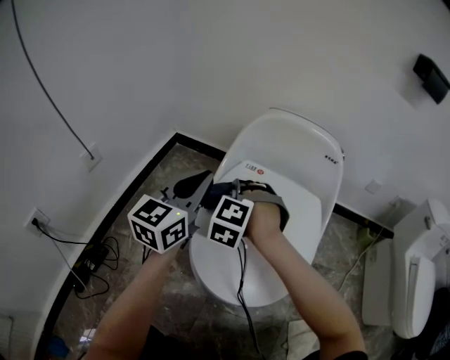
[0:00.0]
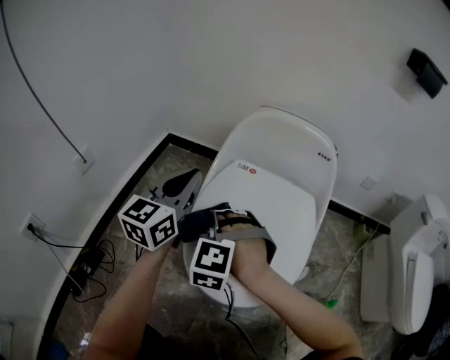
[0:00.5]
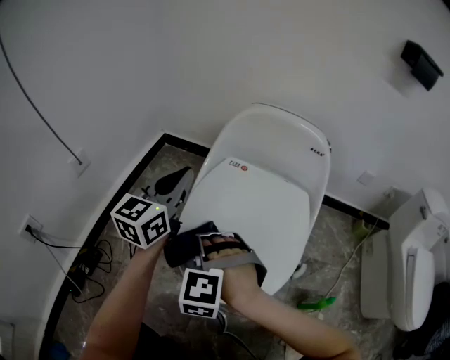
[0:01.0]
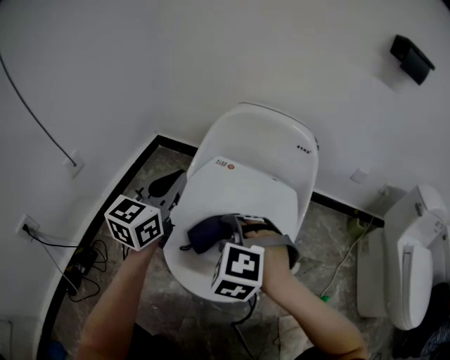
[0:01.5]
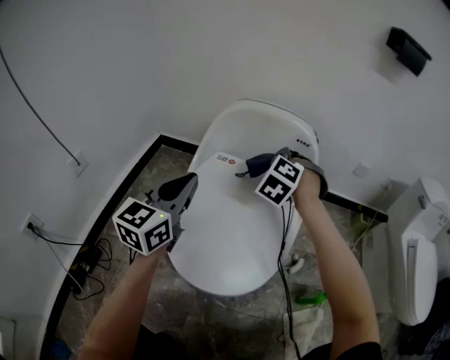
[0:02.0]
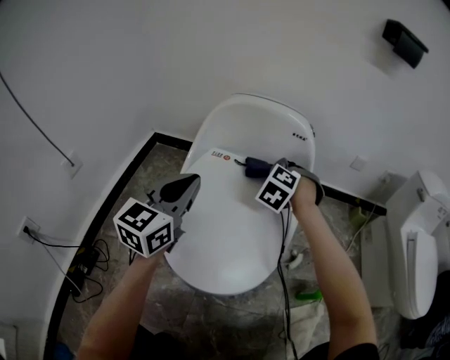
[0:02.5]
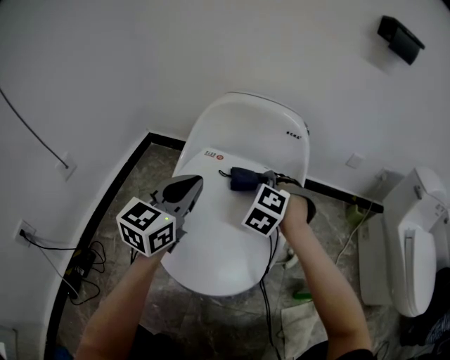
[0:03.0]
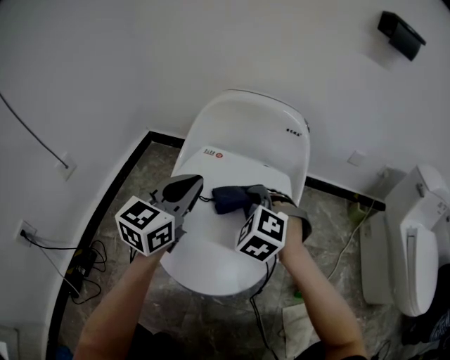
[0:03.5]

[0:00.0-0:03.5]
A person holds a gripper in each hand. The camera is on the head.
0:00.0 to 0:02.0: The left gripper moves approximately 5 cm.
0:02.0 to 0:03.5: The left gripper moves some 5 cm.

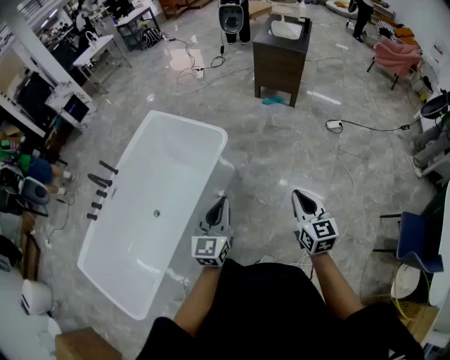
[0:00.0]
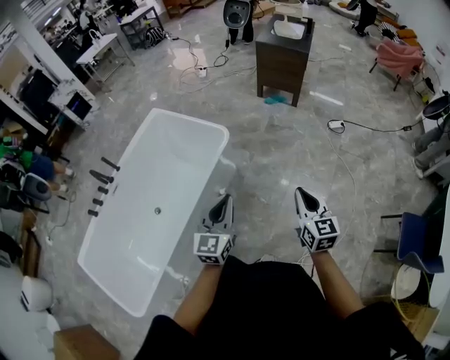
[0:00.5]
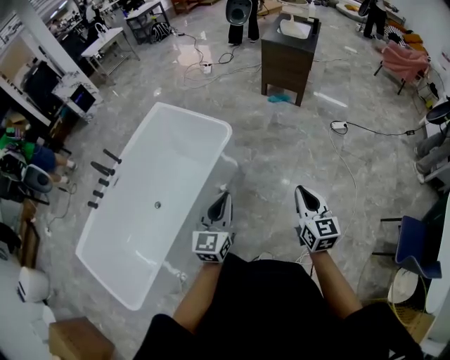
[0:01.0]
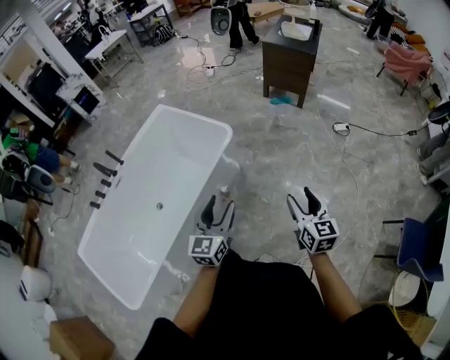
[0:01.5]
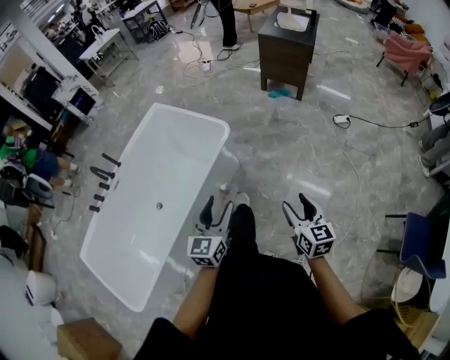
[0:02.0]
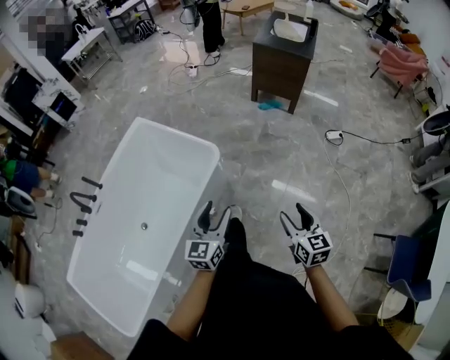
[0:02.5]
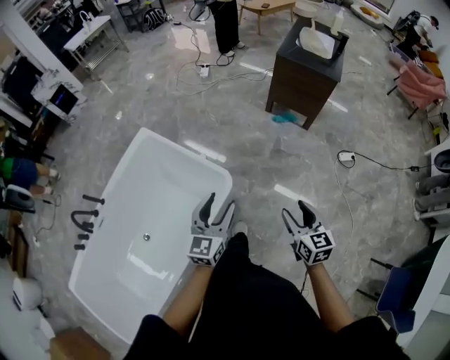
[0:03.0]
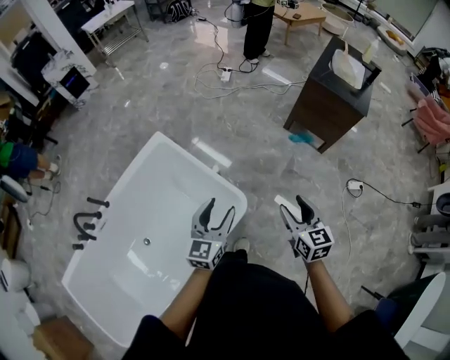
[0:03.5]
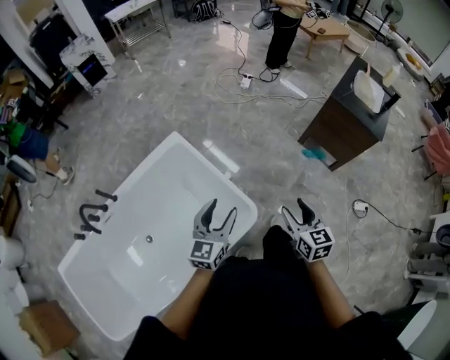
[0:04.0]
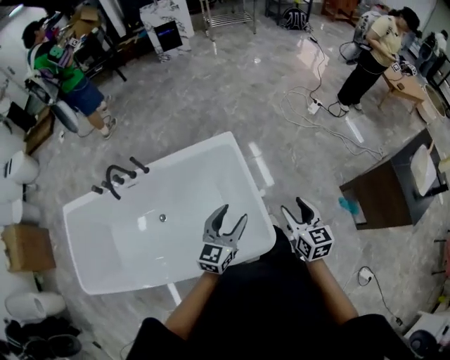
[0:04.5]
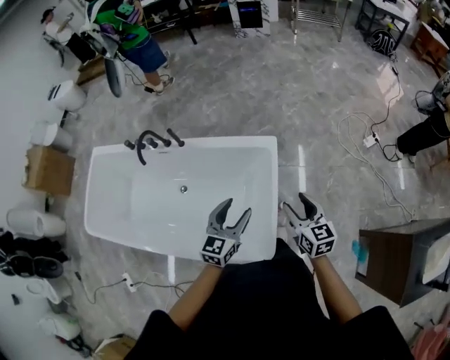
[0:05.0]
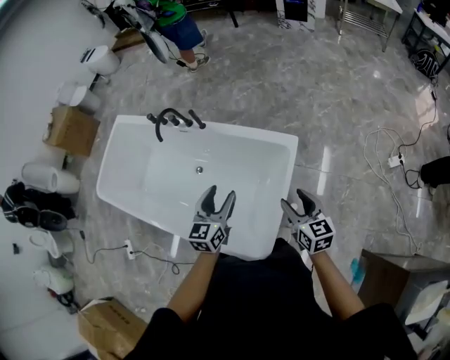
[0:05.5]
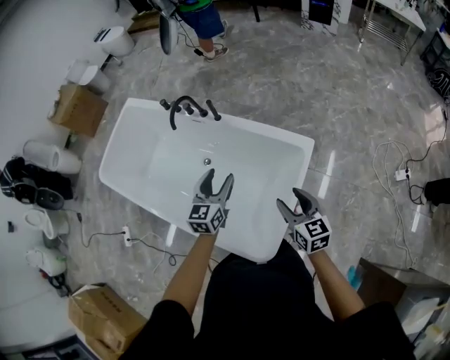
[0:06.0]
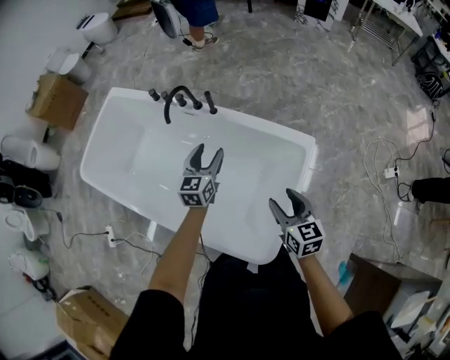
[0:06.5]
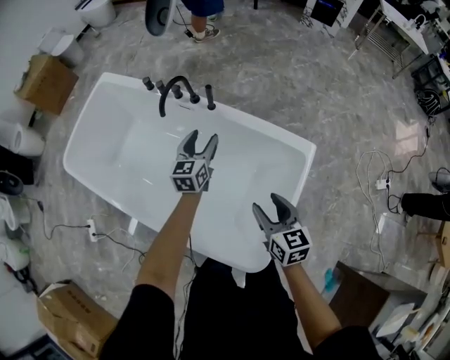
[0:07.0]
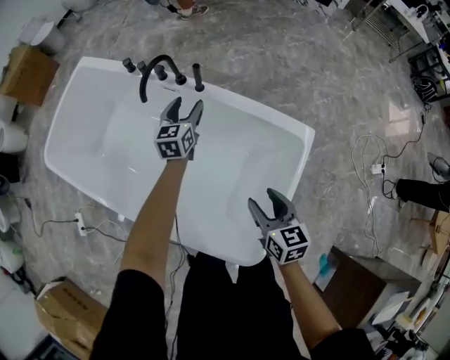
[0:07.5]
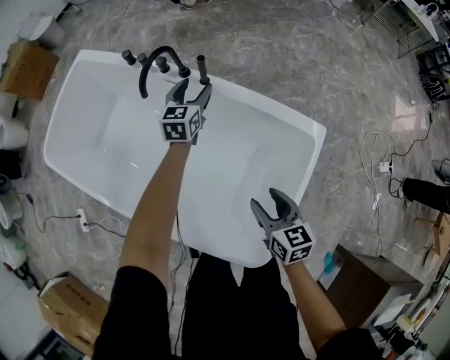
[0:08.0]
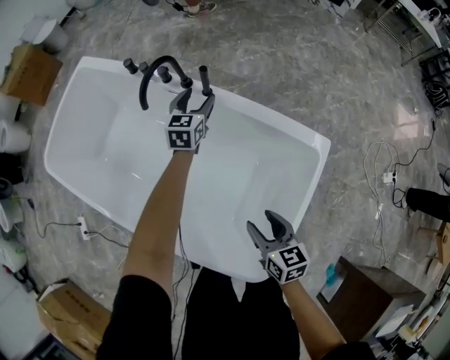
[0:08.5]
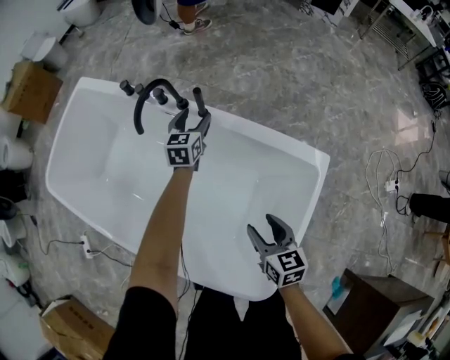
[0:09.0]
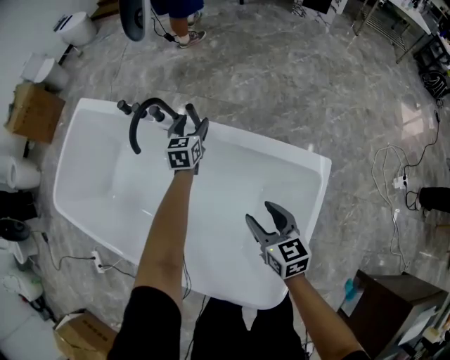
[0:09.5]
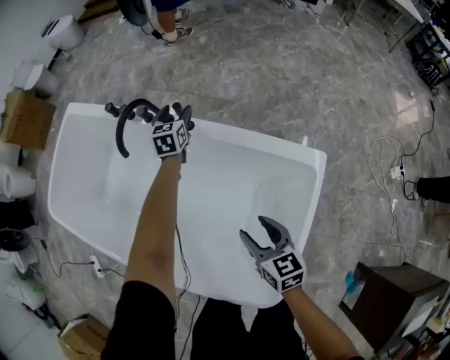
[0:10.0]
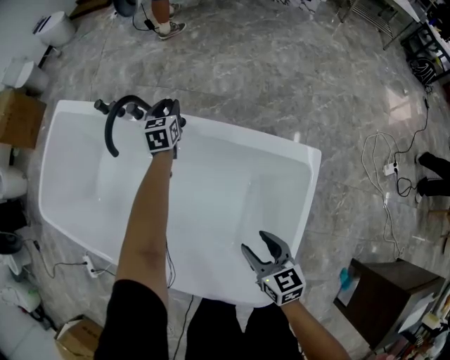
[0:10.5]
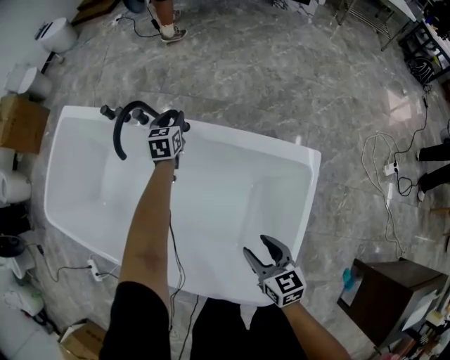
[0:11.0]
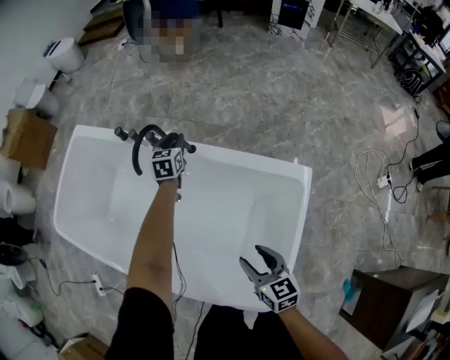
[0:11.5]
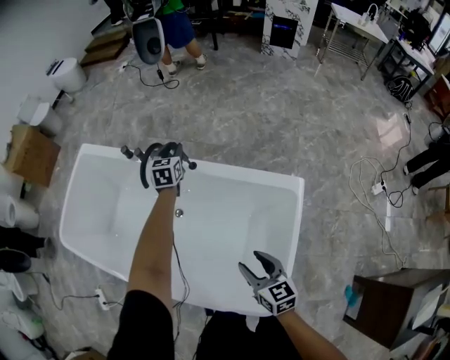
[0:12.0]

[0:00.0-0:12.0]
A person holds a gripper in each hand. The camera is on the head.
0:00.0 to 0:02.0: The right gripper travels downward by approximately 5 cm, and opens up. Meanwhile the left gripper opens up.
0:02.0 to 0:04.0: The pair of grippers is taken forward, roughly 60 cm. The right gripper turns by roughly 20 degrees.
0:04.0 to 0:06.0: The right gripper shifts by about 40 cm, and rotates some 80 degrees, while the left gripper moves some 30 cm, and rotates approximately 70 degrees.
0:06.0 to 0:08.0: The right gripper travels downward, to the left and forward by roughly 20 cm. The left gripper moves forward and downward, approximately 35 cm.
0:08.0 to 0:10.0: The right gripper moves forward, some 5 cm; the left gripper heads forward and downward, covering some 15 cm.
0:10.0 to 0:12.0: The left gripper shifts about 15 cm upward, and closes its fingers. Meanwhile the right gripper shifts approximately 15 cm upward and backward.

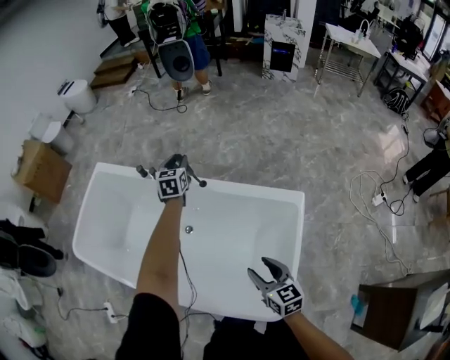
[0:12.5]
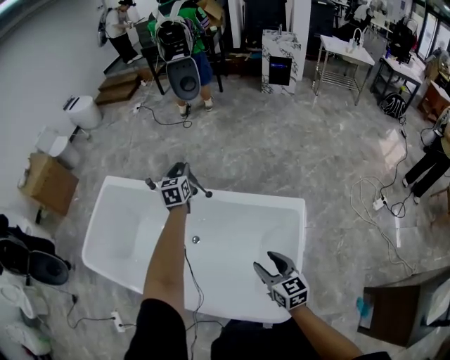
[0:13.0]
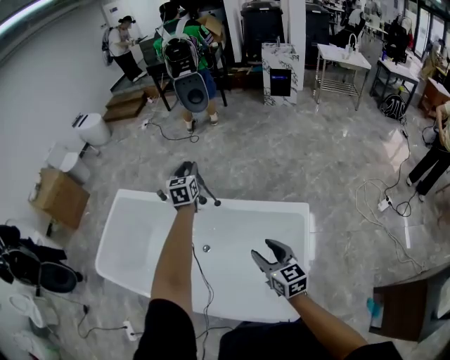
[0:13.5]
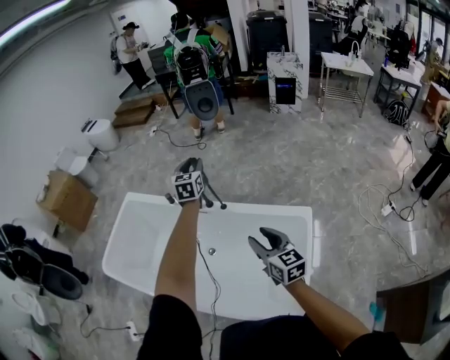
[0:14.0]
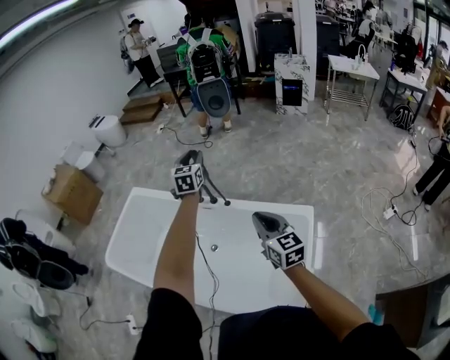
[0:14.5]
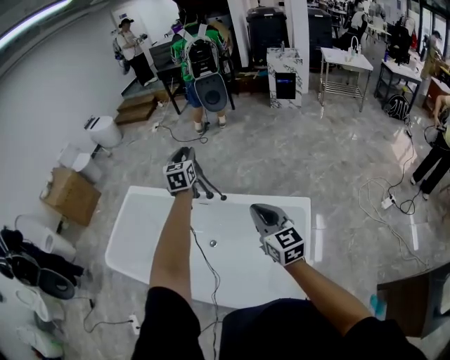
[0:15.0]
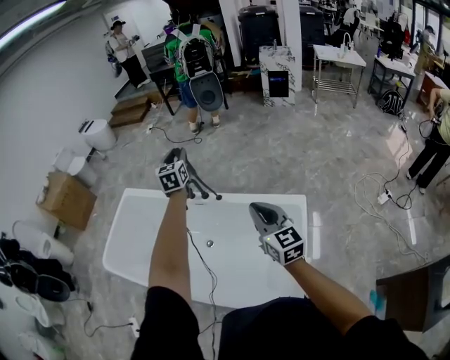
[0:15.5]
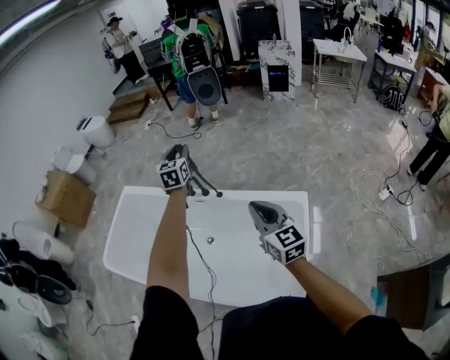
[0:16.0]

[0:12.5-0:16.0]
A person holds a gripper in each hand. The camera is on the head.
0:12.5 to 0:14.5: The two grippers go some 25 cm upward. The right gripper closes its fingers.
0:14.5 to 0:16.0: The grippers move only a little.

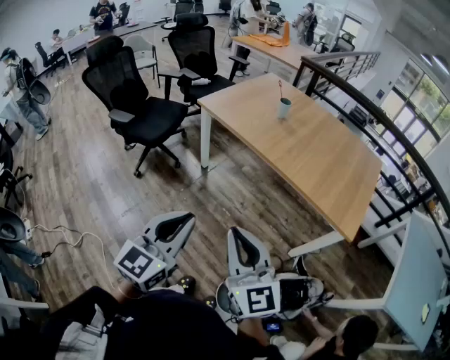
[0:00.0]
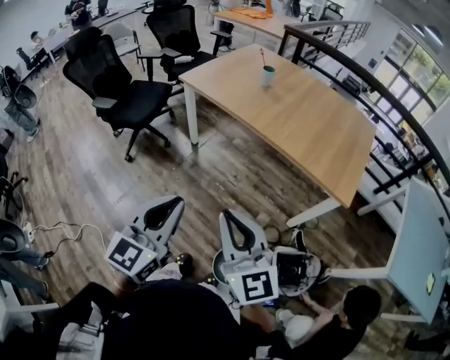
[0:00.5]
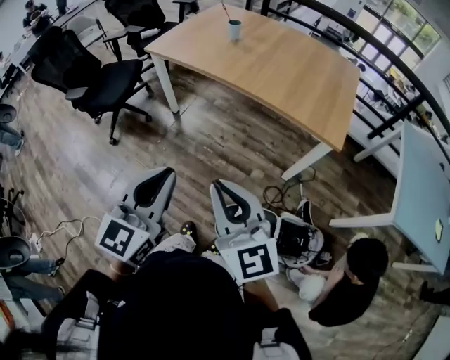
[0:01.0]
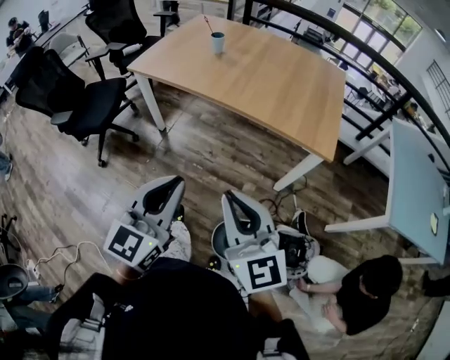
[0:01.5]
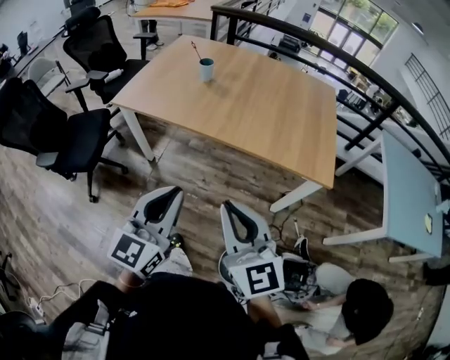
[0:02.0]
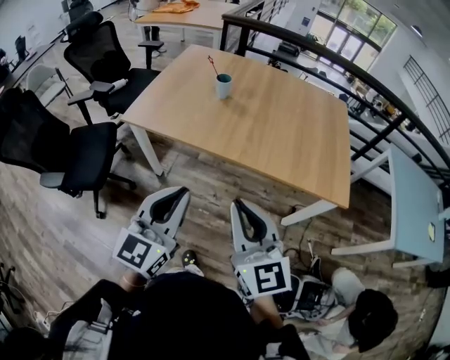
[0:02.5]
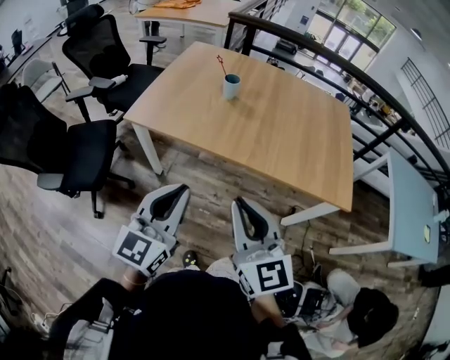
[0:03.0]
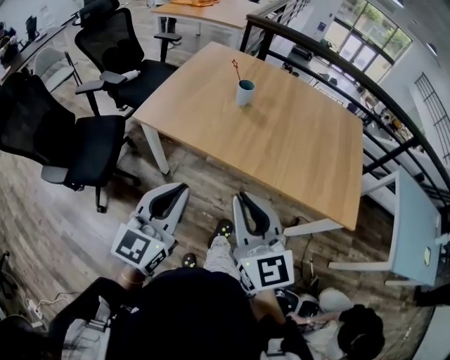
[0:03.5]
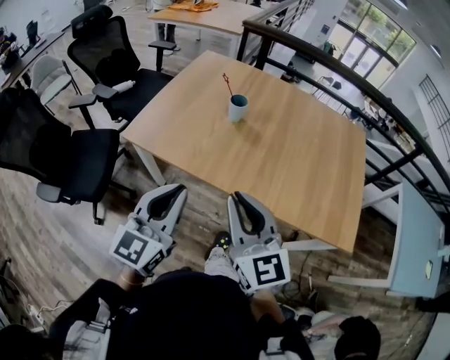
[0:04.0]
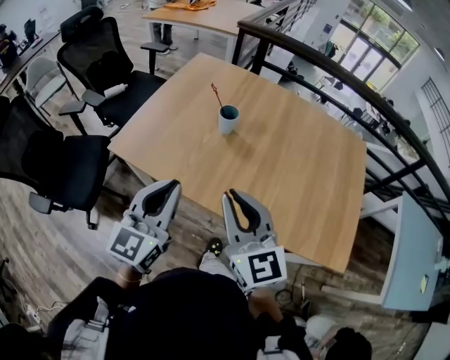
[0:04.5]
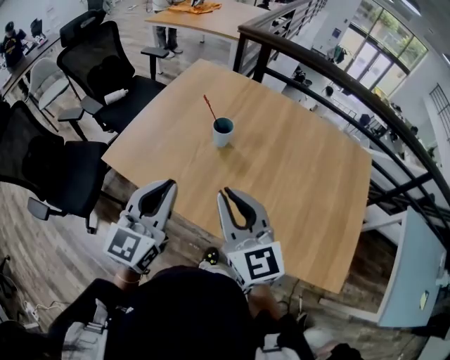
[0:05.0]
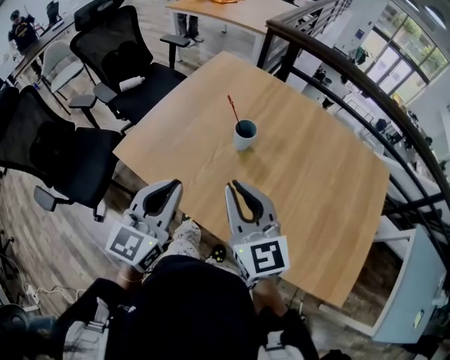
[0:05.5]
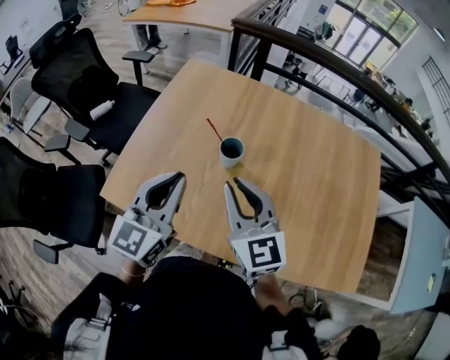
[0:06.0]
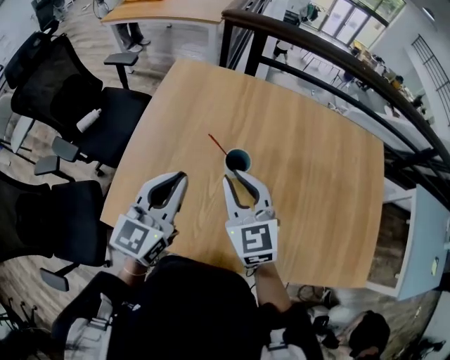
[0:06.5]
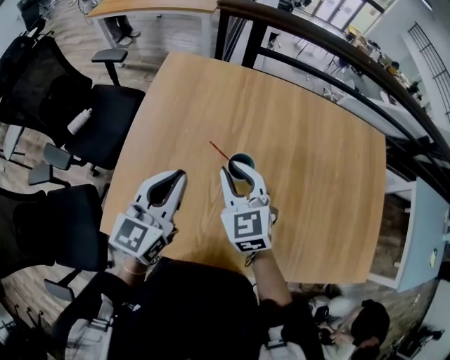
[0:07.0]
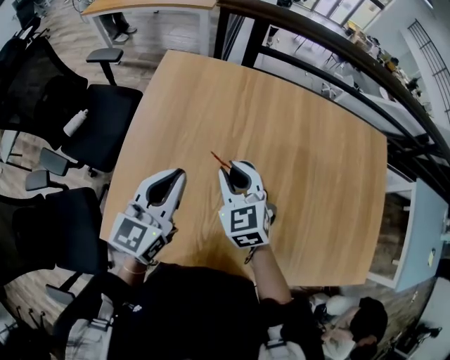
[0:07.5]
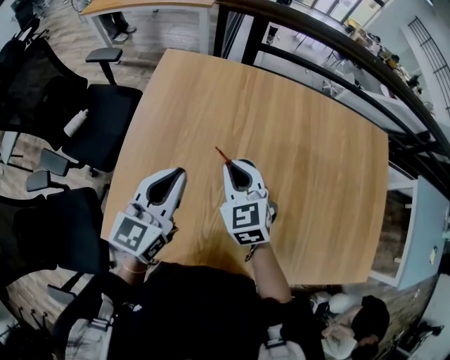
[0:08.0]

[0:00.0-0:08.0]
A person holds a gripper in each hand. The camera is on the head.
0:00.0 to 0:02.0: The right gripper is displaced forward and to the right by roughly 20 cm, and rotates some 20 degrees; the left gripper is displaced forward by about 20 cm.
0:02.0 to 0:04.0: The two grippers go some 35 cm forward and to the left.
0:04.0 to 0:06.0: Both grippers travel together forward, about 35 cm.
0:06.0 to 0:08.0: Both grippers travel together forward and downward, some 25 cm. The right gripper swivels about 30 degrees.
